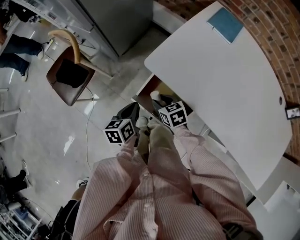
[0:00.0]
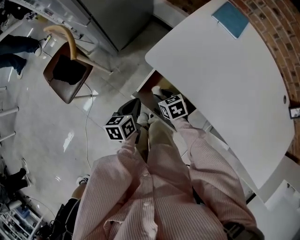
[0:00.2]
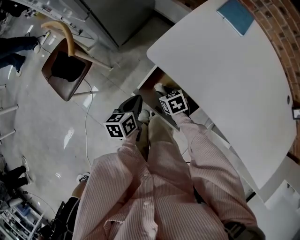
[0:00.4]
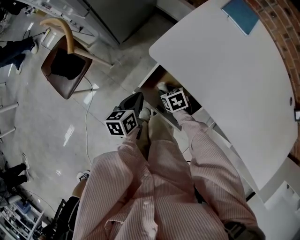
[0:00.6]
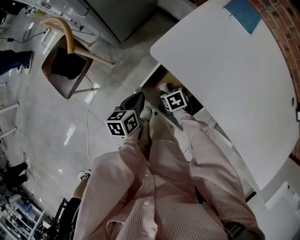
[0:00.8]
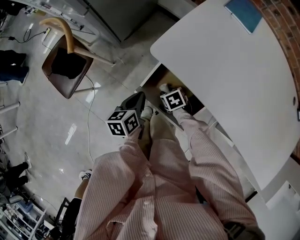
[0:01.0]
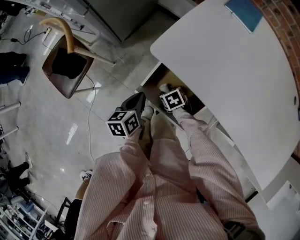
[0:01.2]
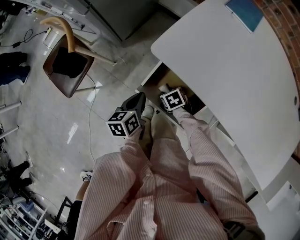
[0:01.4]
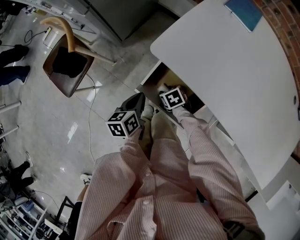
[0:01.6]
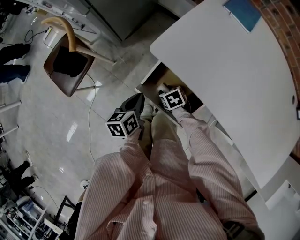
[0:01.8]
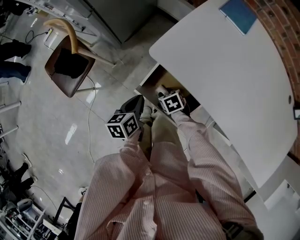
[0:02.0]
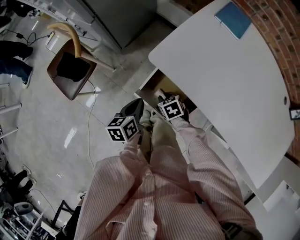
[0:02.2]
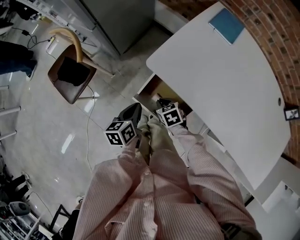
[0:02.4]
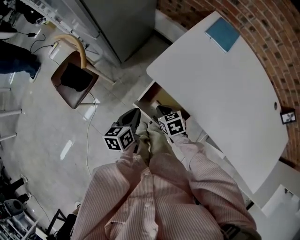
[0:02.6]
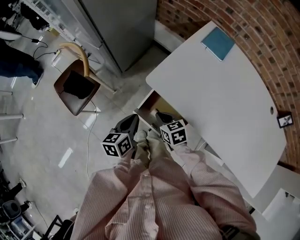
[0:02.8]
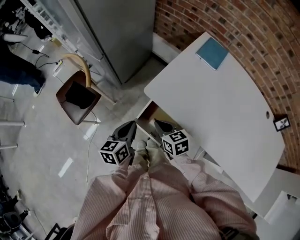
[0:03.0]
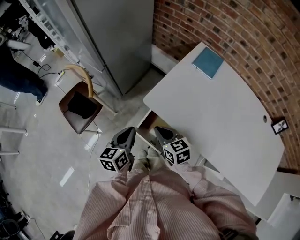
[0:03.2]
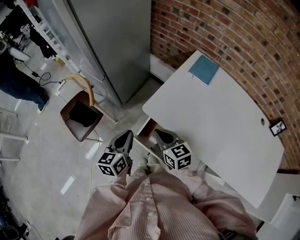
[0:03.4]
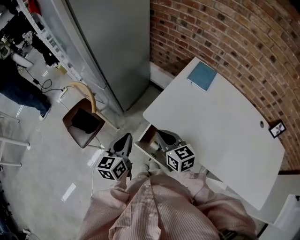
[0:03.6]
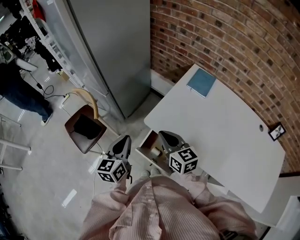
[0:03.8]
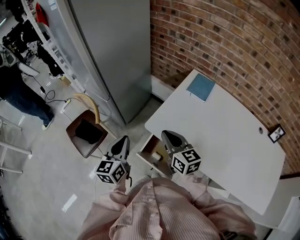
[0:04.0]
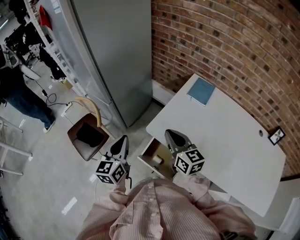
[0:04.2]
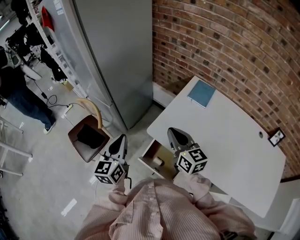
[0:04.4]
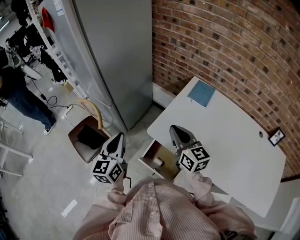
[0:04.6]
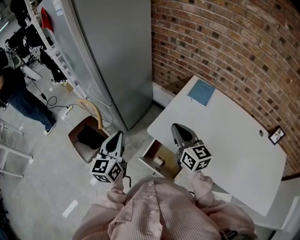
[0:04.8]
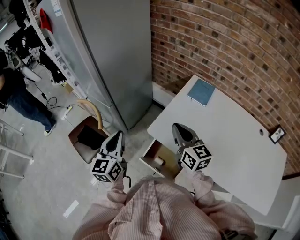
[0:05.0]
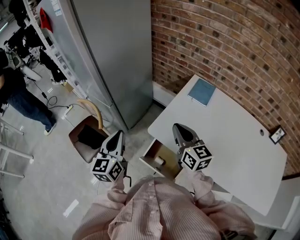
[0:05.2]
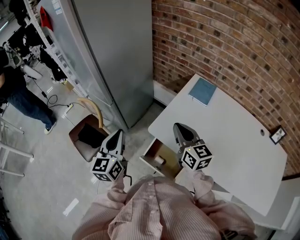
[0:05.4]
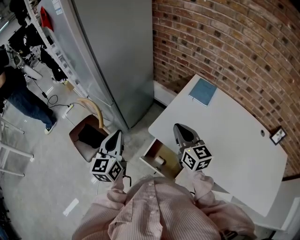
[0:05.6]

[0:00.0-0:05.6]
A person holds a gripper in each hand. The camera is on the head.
0:00.0 to 0:01.4: The right gripper shifts some 15 cm downward, and changes its angle by approximately 20 degrees, while the left gripper moves downward, about 5 cm.
0:01.4 to 0:02.8: The right gripper heads upward, covering roughly 20 cm, changes its angle by approximately 30 degrees, and closes up. The left gripper heads upward, covering roughly 15 cm.
0:02.8 to 0:04.2: Both grippers move upward, approximately 25 cm. The left gripper turns by some 30 degrees; the right gripper angles its fingers upward, by roughly 40 degrees.
0:04.2 to 0:05.6: There are only small adjustments of the grippers.

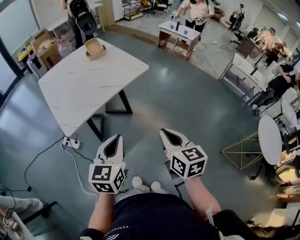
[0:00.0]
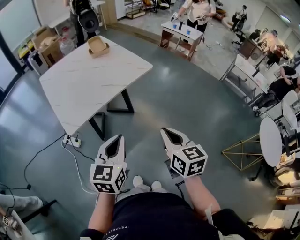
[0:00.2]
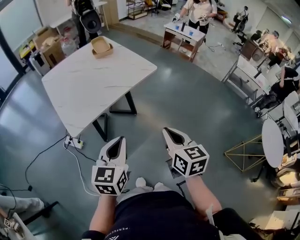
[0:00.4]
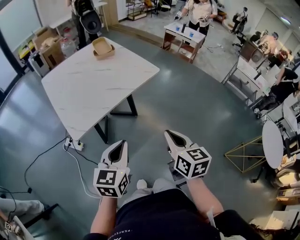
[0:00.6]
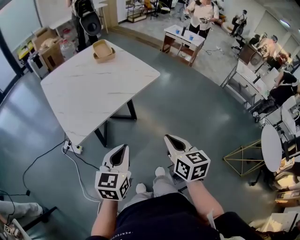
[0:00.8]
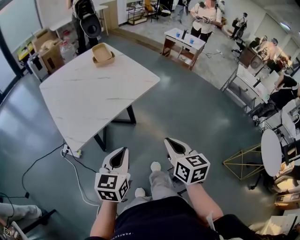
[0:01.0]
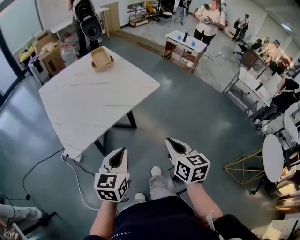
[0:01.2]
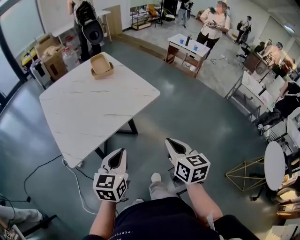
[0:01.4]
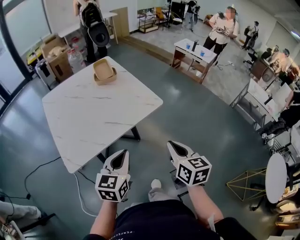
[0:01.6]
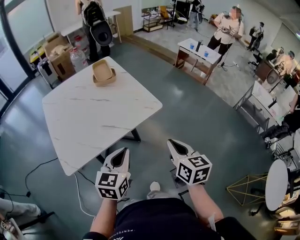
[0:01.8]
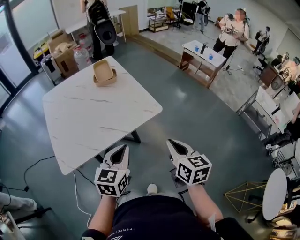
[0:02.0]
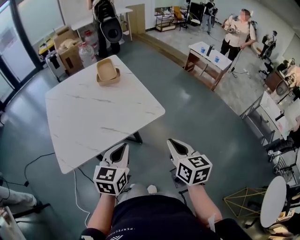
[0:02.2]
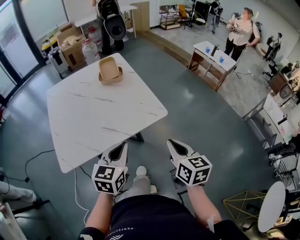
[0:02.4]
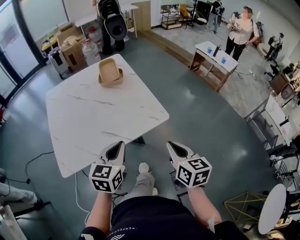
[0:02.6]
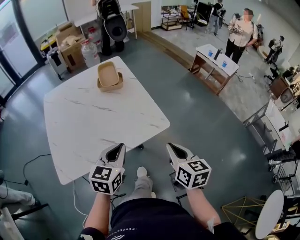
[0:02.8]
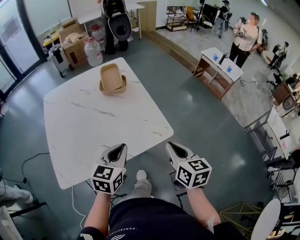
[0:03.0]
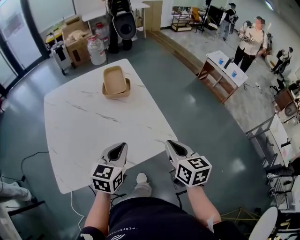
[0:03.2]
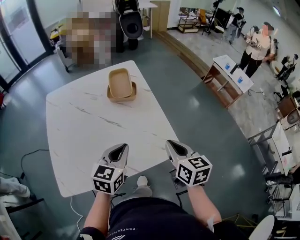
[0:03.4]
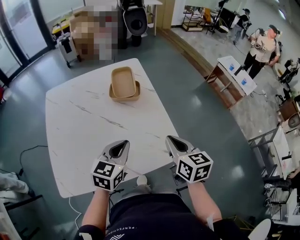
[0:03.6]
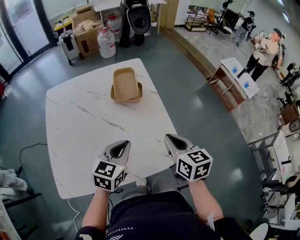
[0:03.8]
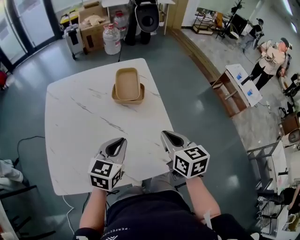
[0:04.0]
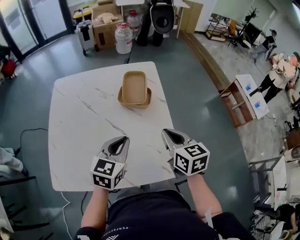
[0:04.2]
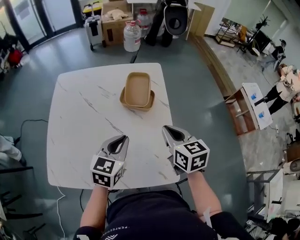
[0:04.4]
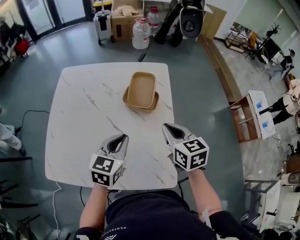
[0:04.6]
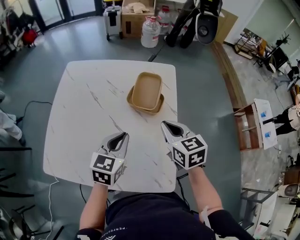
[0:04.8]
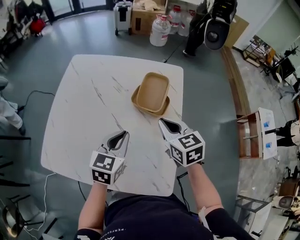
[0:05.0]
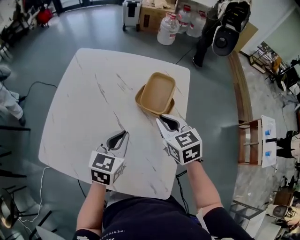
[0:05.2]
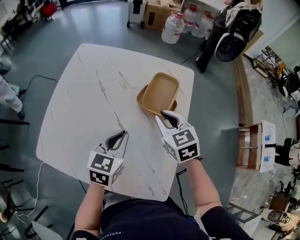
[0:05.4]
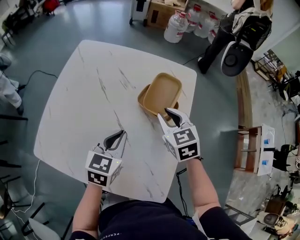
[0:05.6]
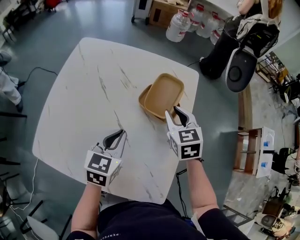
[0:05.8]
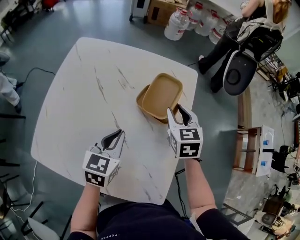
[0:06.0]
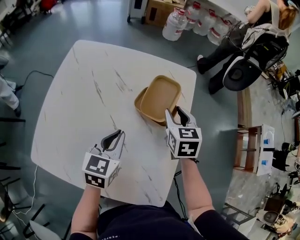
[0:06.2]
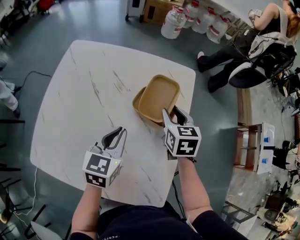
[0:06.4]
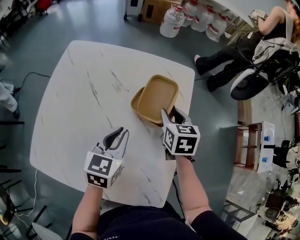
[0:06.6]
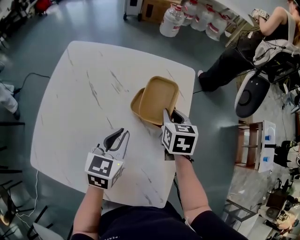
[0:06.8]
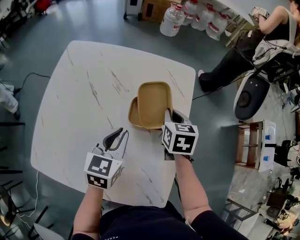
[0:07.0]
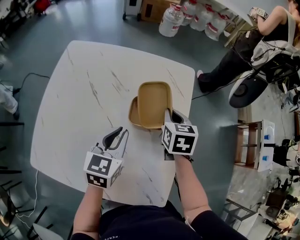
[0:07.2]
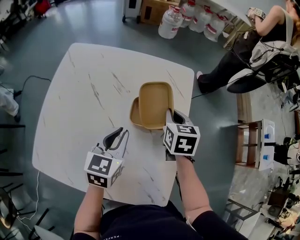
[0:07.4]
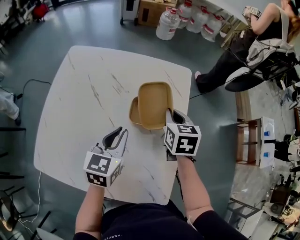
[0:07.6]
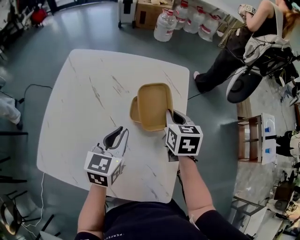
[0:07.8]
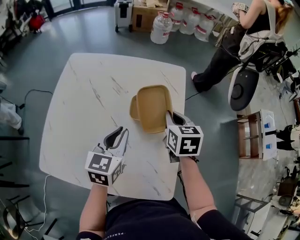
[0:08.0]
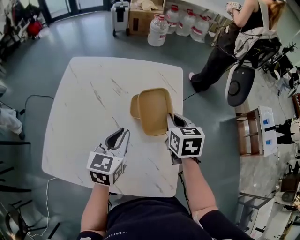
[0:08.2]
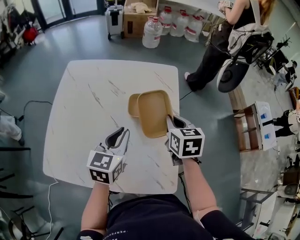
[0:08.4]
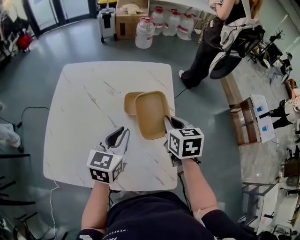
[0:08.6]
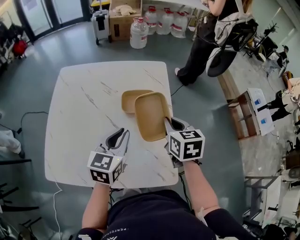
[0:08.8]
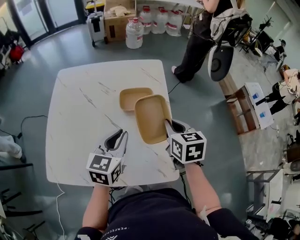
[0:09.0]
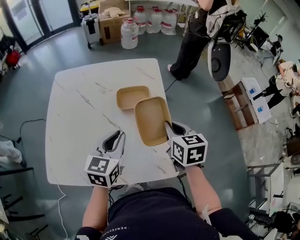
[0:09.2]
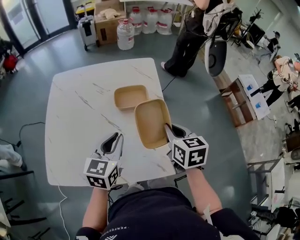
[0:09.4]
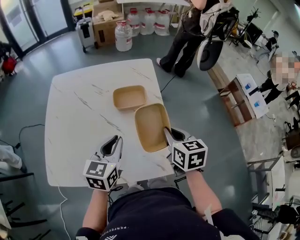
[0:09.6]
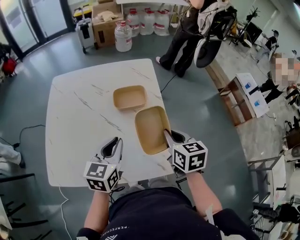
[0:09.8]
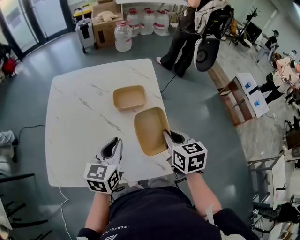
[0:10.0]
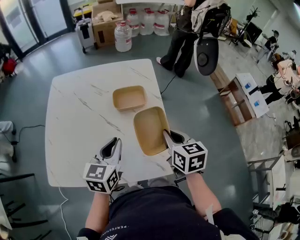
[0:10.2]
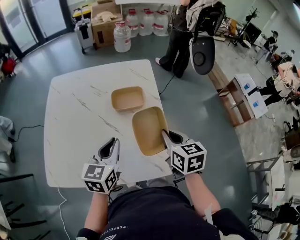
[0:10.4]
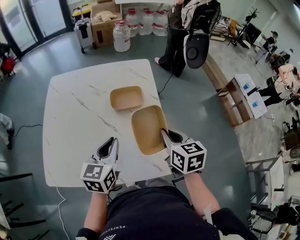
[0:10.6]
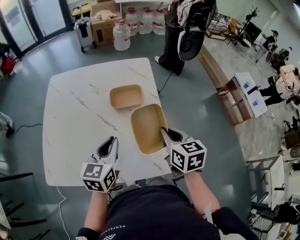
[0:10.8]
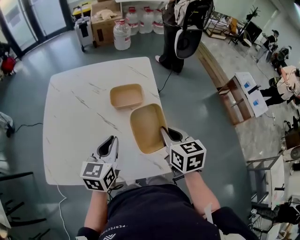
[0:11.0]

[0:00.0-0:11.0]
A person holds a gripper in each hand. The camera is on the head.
0:00.0 to 0:01.6: Both grippers travel together forward, about 20 cm.
0:01.6 to 0:03.2: Both grippers move forward, about 25 cm.
0:03.2 to 0:04.8: The right gripper shifts by roughly 30 cm, and swivels some 40 degrees. Meanwhile the left gripper moves roughly 20 cm, and rotates approximately 30 degrees.
0:04.8 to 0:06.2: The left gripper moves forward, some 5 cm. The right gripper travels forward and downward by roughly 15 cm, and opens its fingers.
0:06.2 to 0:07.8: The right gripper closes up.
0:07.8 to 0:09.4: The left gripper travels backward by about 10 cm. The right gripper goes roughly 20 cm backward.
0:09.4 to 0:11.0: The grippers stay close to where they were, moving slightly.

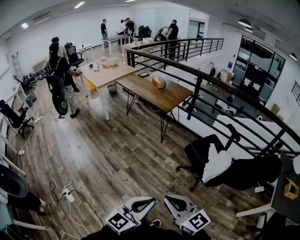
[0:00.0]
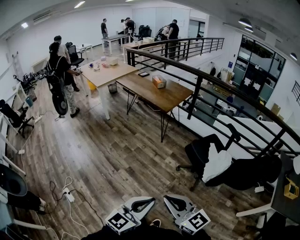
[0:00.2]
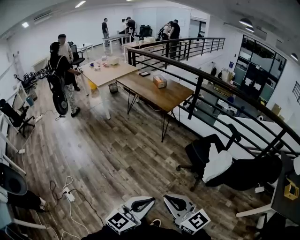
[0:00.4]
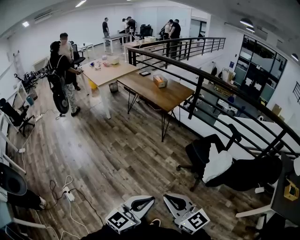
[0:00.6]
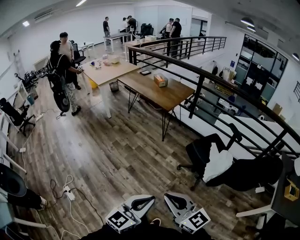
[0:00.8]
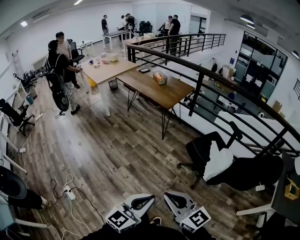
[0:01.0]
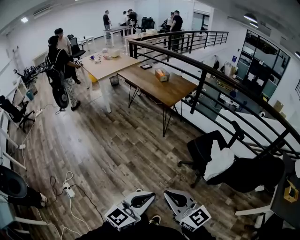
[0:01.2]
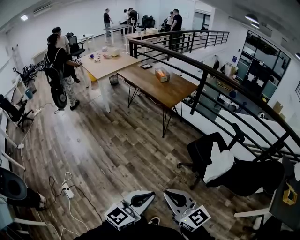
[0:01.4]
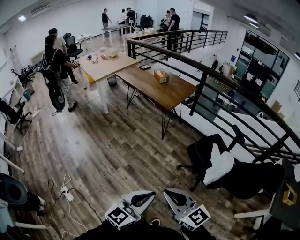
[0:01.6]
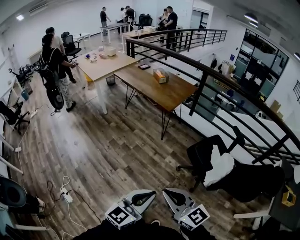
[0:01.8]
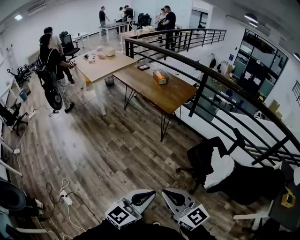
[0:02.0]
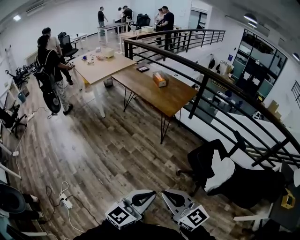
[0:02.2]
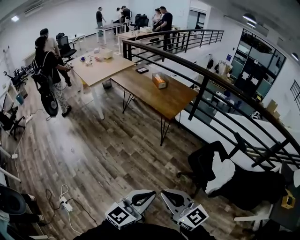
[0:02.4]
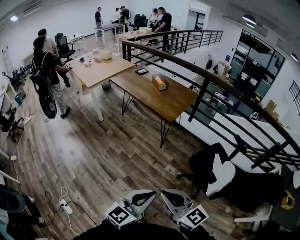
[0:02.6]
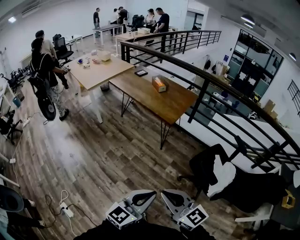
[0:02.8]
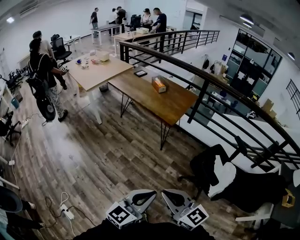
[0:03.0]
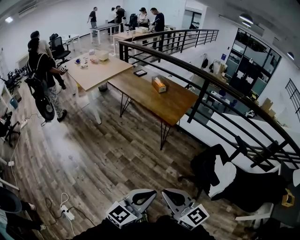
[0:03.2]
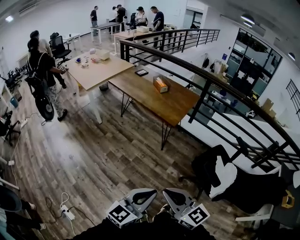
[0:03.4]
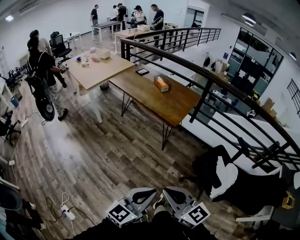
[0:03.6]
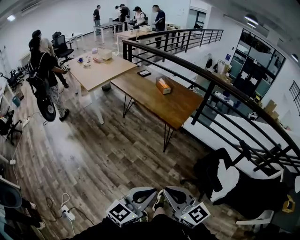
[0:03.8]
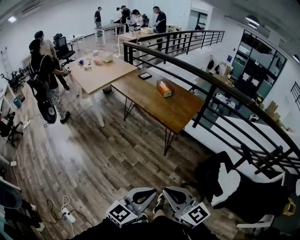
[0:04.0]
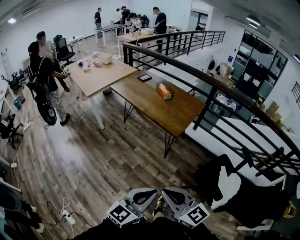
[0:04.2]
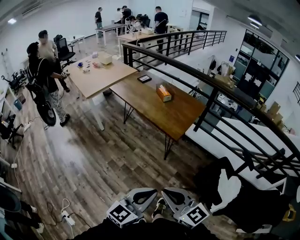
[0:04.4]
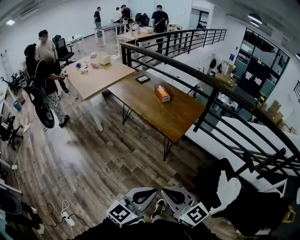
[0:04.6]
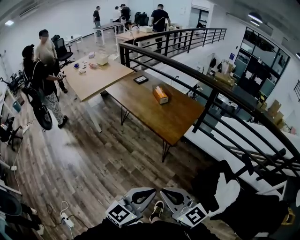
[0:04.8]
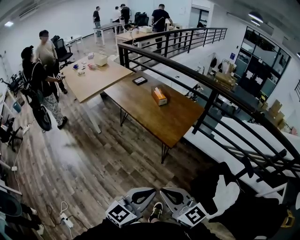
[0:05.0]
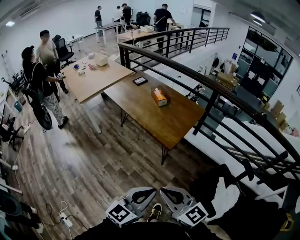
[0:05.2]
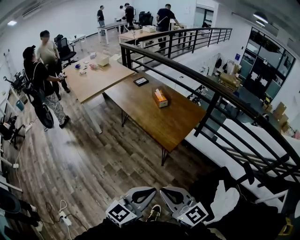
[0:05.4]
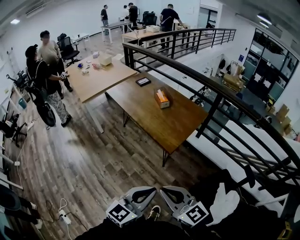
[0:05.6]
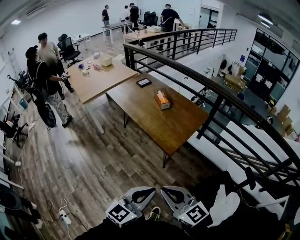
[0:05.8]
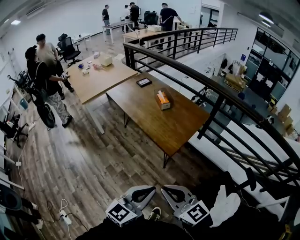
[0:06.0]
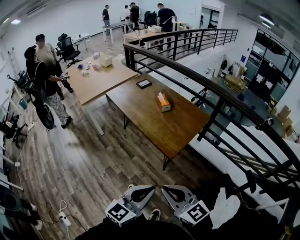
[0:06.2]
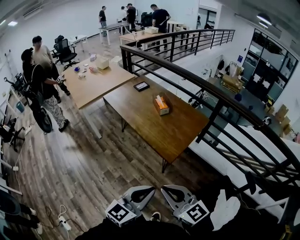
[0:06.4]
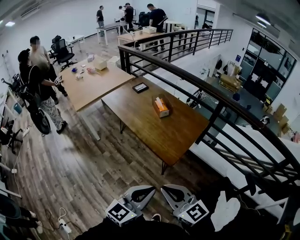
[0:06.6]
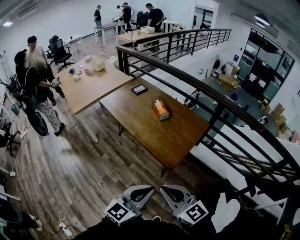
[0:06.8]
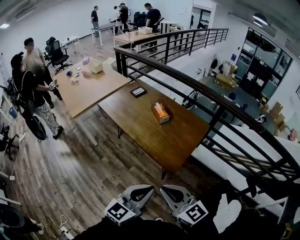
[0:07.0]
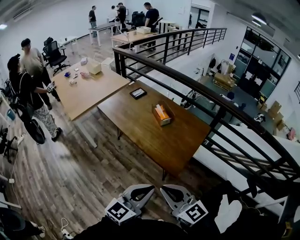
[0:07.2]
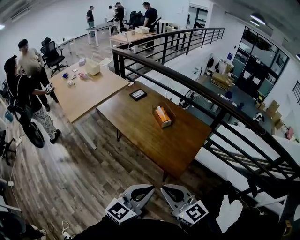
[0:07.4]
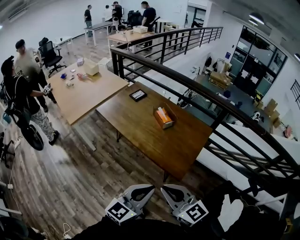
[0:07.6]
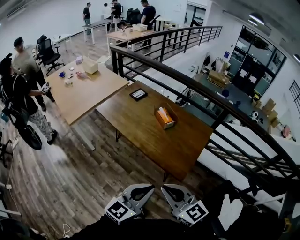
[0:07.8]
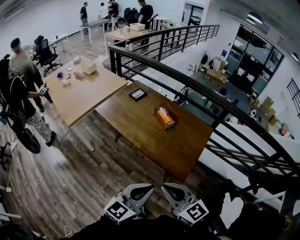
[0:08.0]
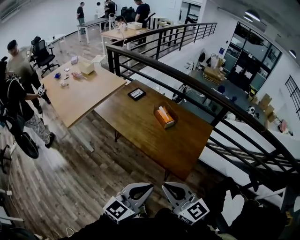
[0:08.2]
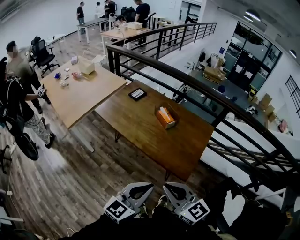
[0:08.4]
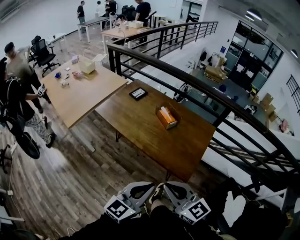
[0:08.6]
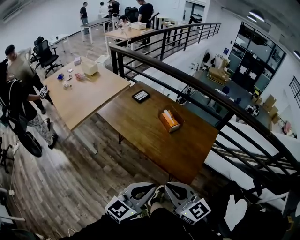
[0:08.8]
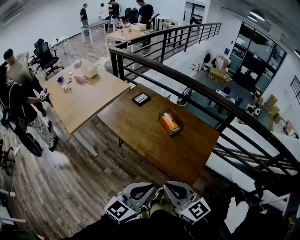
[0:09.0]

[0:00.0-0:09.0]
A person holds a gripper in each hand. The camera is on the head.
0:00.0 to 0:01.6: The grippers both shift forward by about 10 cm.
0:01.6 to 0:03.0: Both grippers travel together forward and to the left, roughly 20 cm.
0:03.0 to 0:04.4: The grippers both shift forward by some 15 cm.
0:04.4 to 0:06.0: The grippers both shift forward and to the right by approximately 20 cm.
0:06.0 to 0:07.6: The grippers both shift forward and to the left by roughly 25 cm.
0:07.6 to 0:09.0: Both grippers travel together forward and to the left, roughly 10 cm.
